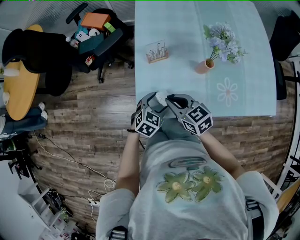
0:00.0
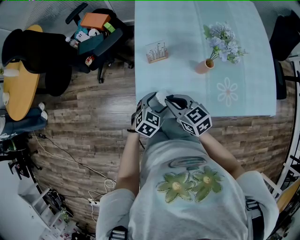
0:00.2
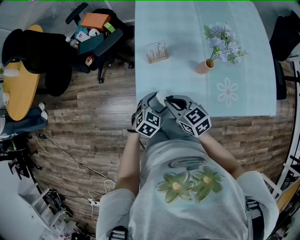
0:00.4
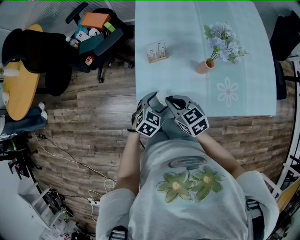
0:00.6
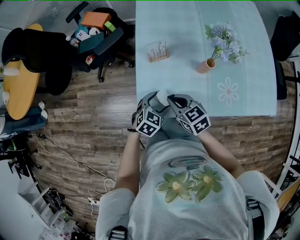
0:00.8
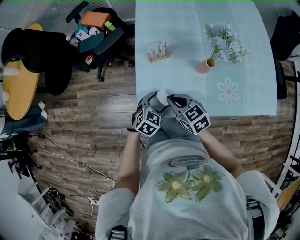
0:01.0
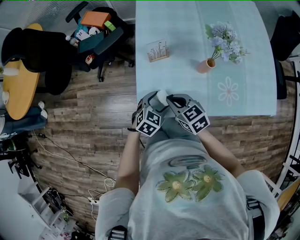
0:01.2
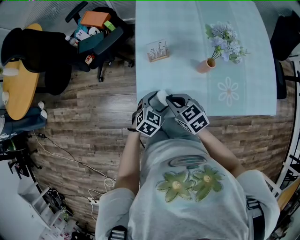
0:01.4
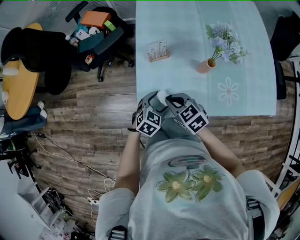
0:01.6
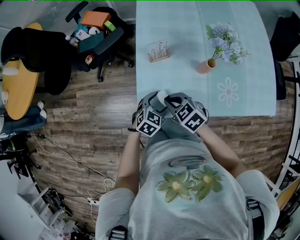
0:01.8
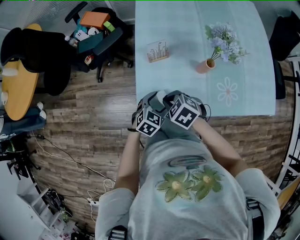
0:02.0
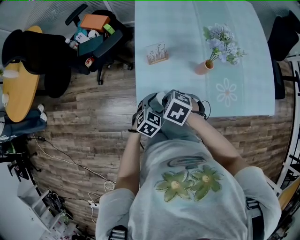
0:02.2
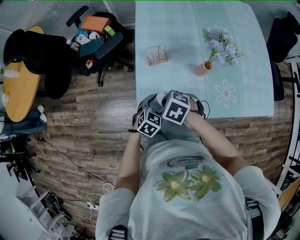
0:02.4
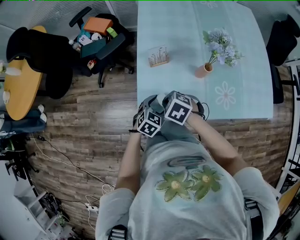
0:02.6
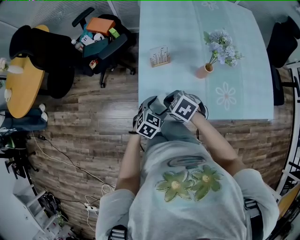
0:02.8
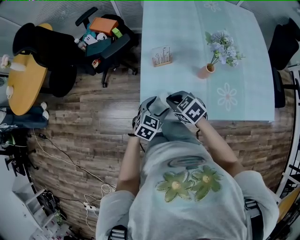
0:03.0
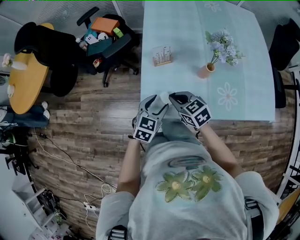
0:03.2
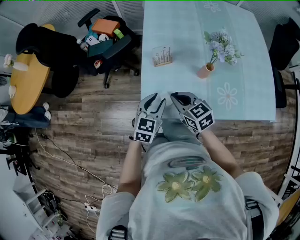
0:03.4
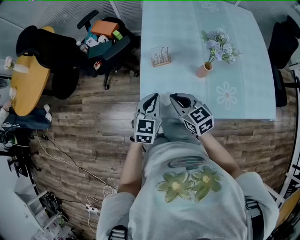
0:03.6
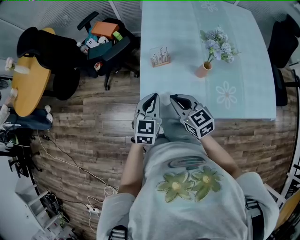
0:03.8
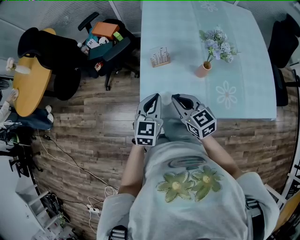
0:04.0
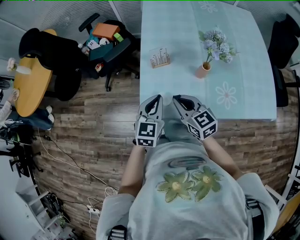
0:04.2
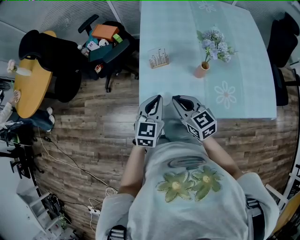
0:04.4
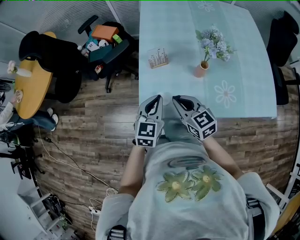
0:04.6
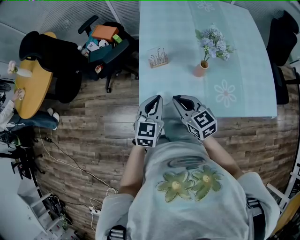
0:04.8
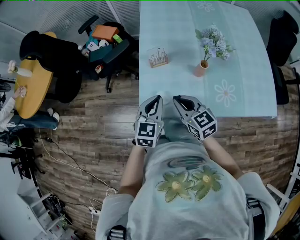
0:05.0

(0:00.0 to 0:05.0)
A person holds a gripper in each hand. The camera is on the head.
0:00.0 - 0:01.6: The grippers stay close to where they were, moving slightly.
0:01.6 - 0:03.4: The left gripper travels upward by some 10 cm, rotates approximately 20 degrees, and closes its fingers, while the right gripper shifts by about 5 cm.
0:03.4 - 0:05.0: The right gripper moves approximately 5 cm. The left gripper ends up about 5 cm from where it was, and closes.

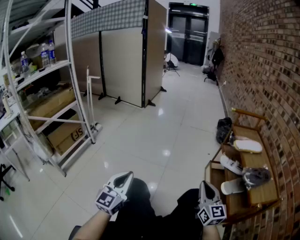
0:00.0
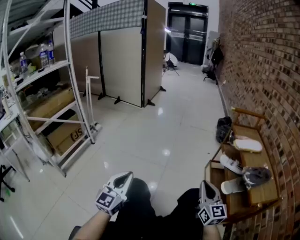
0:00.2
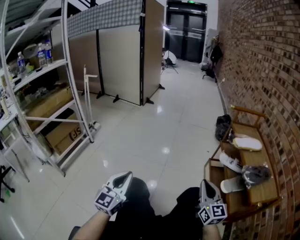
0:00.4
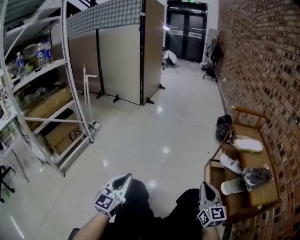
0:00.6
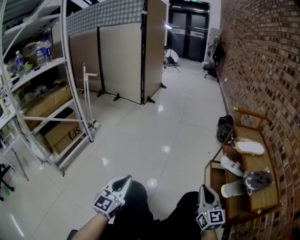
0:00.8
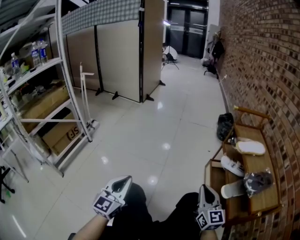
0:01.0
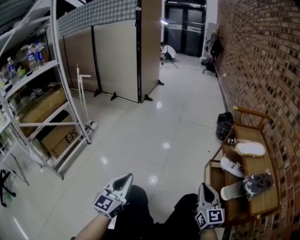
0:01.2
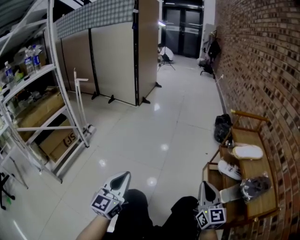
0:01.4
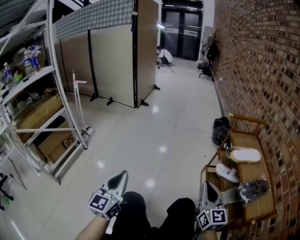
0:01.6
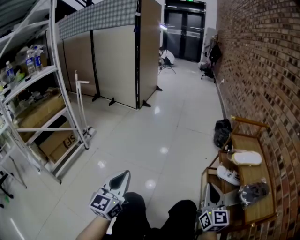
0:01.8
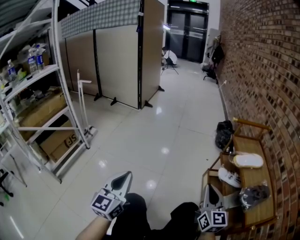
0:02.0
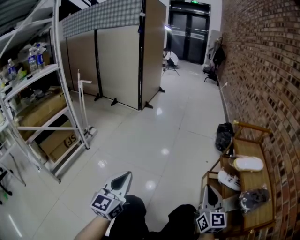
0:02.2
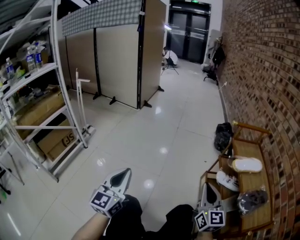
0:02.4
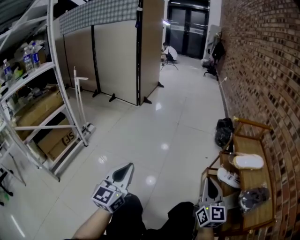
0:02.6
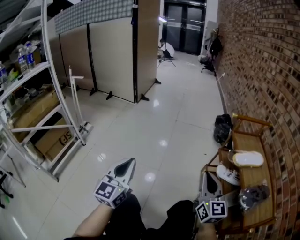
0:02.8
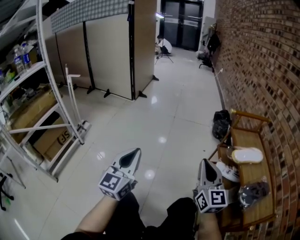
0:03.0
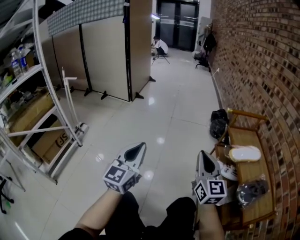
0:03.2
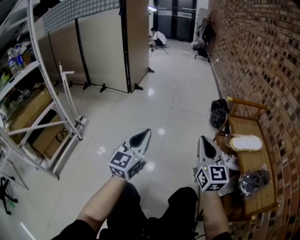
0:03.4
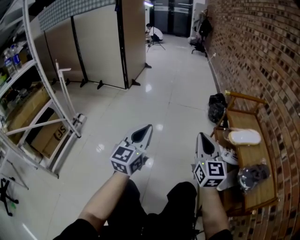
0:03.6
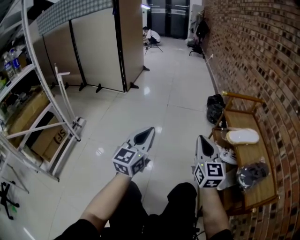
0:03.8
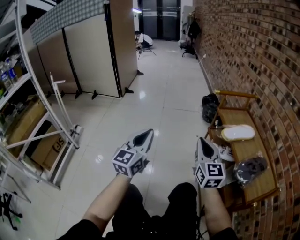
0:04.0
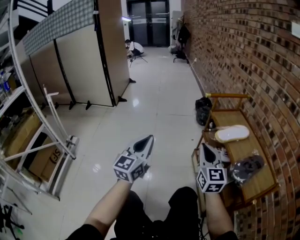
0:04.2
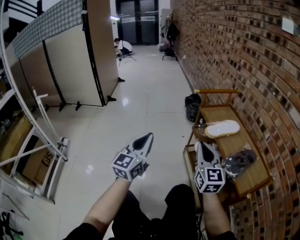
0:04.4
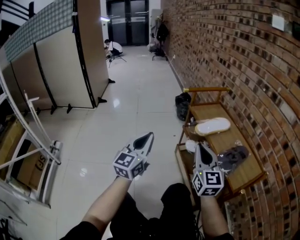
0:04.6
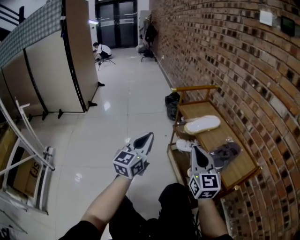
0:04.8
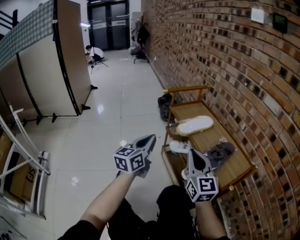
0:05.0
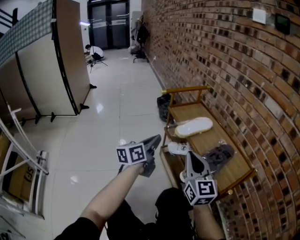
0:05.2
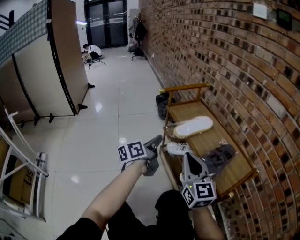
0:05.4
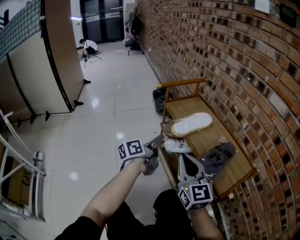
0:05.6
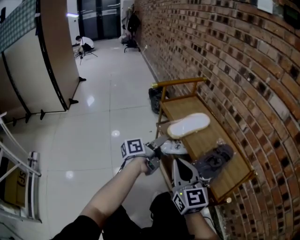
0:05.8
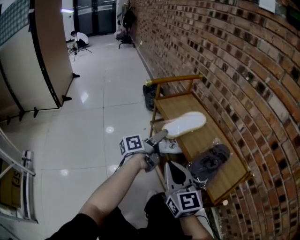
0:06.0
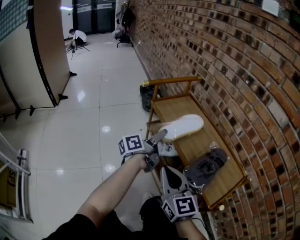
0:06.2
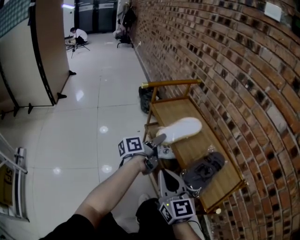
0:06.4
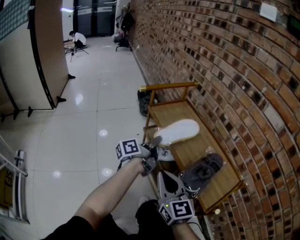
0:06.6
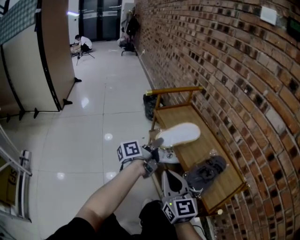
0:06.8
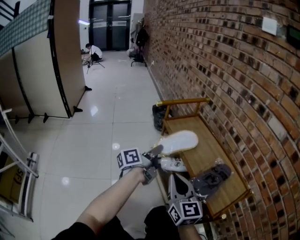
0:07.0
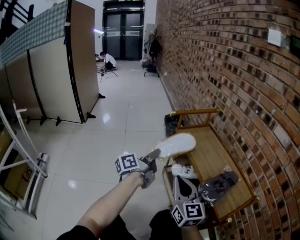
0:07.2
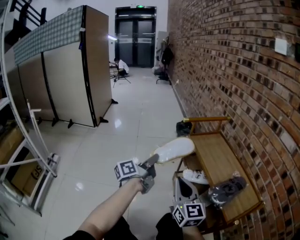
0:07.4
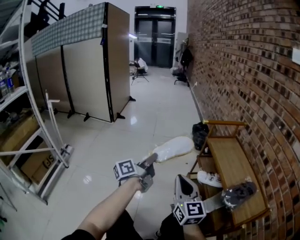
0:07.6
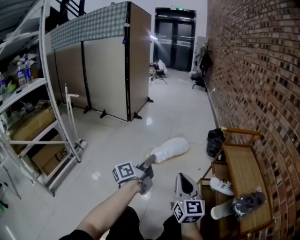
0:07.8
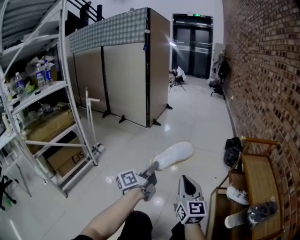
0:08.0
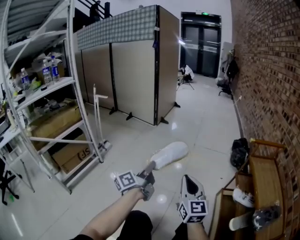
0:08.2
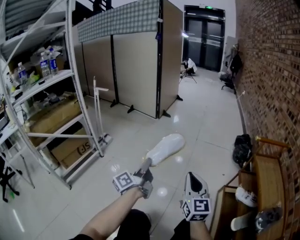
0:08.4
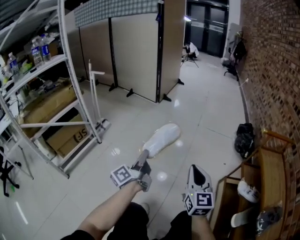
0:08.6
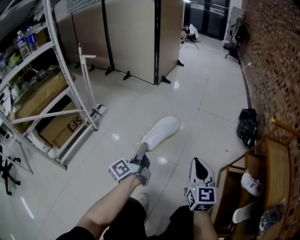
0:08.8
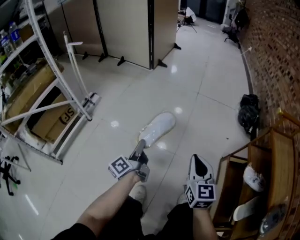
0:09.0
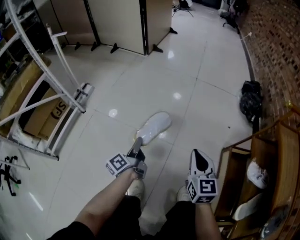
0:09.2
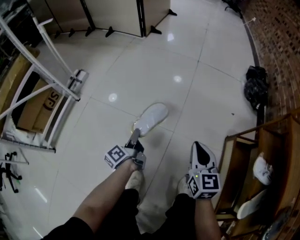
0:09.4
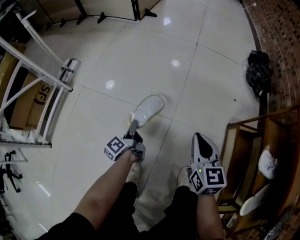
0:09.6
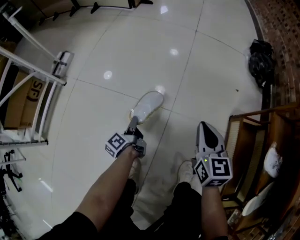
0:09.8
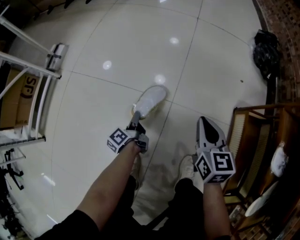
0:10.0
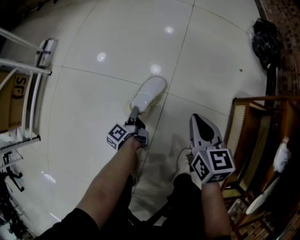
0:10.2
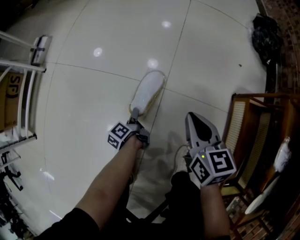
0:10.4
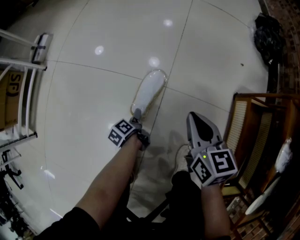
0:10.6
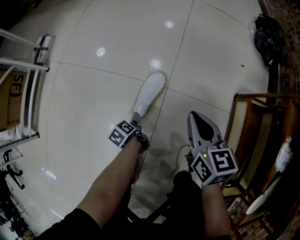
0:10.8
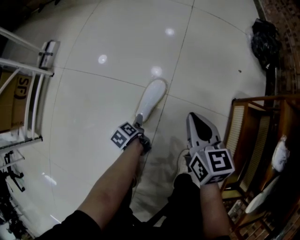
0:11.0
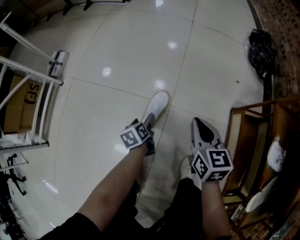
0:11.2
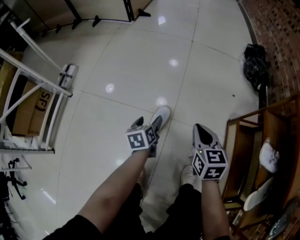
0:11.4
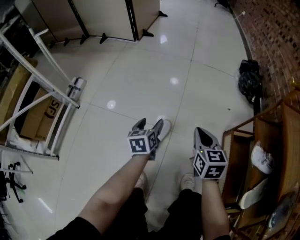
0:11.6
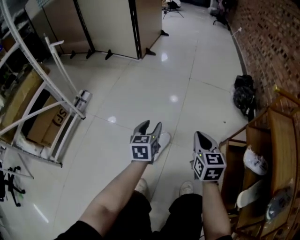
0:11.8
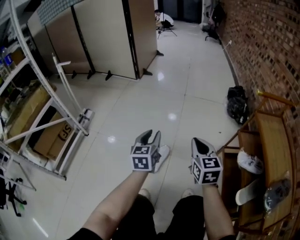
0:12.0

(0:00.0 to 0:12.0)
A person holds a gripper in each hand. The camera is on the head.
0:00.0 - 0:01.6: Both grippers travel together forward and upward, approximately 10 cm.
0:01.6 - 0:03.0: Both grippers move forward, approximately 10 cm.
0:03.0 - 0:04.4: The right gripper heads to the right, covering some 10 cm. Meanwhile the left gripper is displaced to the right and forward by some 15 cm, and rotates approximately 20 degrees.
0:04.4 - 0:06.0: The right gripper ends up about 5 cm from where it was, while the left gripper moves to the right, forward and downward, some 35 cm, rolls counterclockwise, seen from behind, by approximately 70 degrees, and opens up.
0:06.0 - 0:07.6: The right gripper goes approximately 15 cm to the left and backward; the left gripper travels to the left and backward by roughly 30 cm, turns by roughly 30 degrees, and closes.
0:07.6 - 0:09.0: The left gripper travels to the left and downward by approximately 35 cm, and turns by some 40 degrees; the right gripper shifts roughly 25 cm downward, forward and to the left.
0:09.0 - 0:10.4: The left gripper goes approximately 40 cm downward, and tilts its fingers approximately 40 degrees downward, while the right gripper goes roughly 25 cm downward, and changes its angle by some 30 degrees.
0:10.4 - 0:12.0: The left gripper travels upward by approximately 50 cm, twists roughly 80 degrees clockwise, seen from behind, and opens, then closes again; the right gripper heads upward, covering some 25 cm, and turns by about 20 degrees.

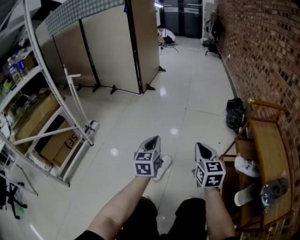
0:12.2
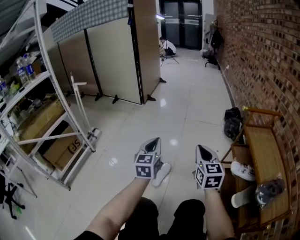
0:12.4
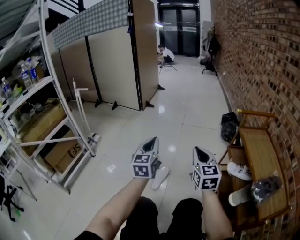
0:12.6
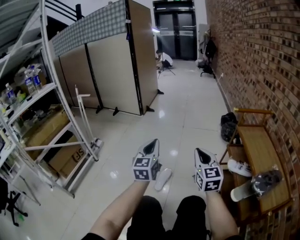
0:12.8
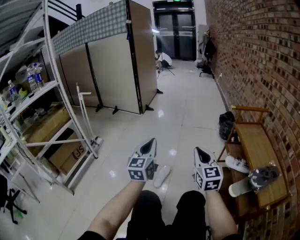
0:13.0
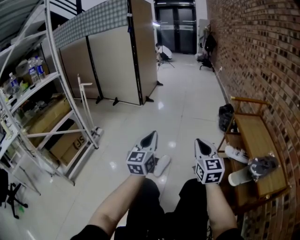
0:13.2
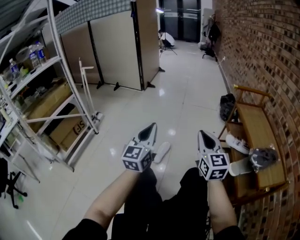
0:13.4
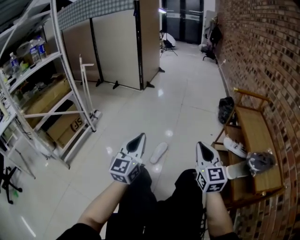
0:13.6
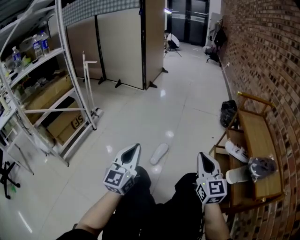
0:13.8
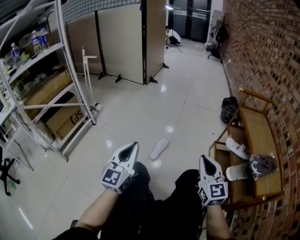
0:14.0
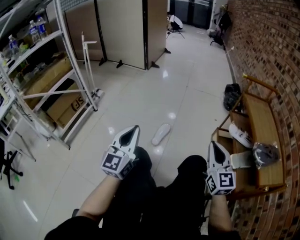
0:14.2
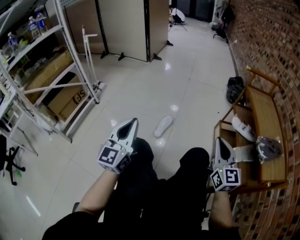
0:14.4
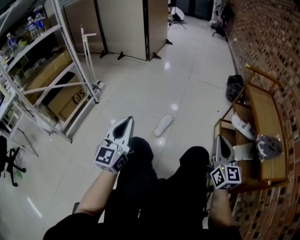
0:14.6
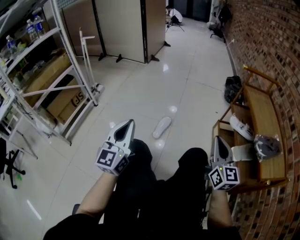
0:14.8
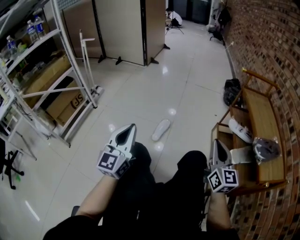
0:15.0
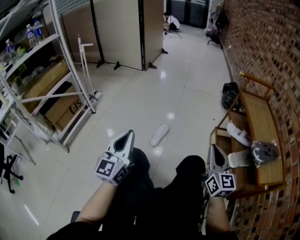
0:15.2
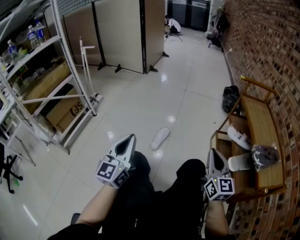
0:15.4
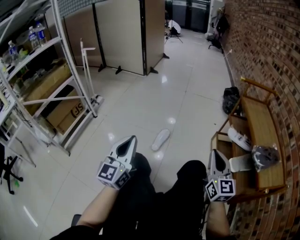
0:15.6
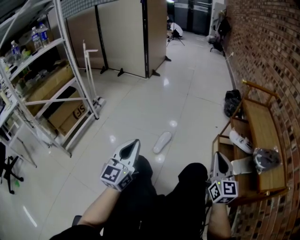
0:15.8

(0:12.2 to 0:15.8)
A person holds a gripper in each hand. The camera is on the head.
0:12.2 - 0:14.0: The two grippers go roughly 25 cm backward. The left gripper turns by some 20 degrees.
0:14.0 - 0:15.8: The right gripper heads to the right, covering about 5 cm.

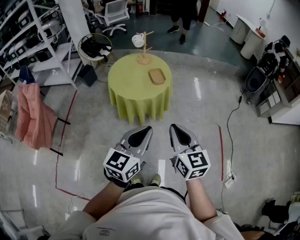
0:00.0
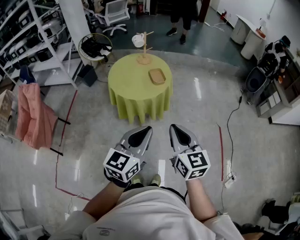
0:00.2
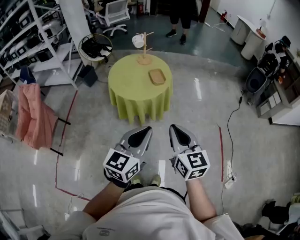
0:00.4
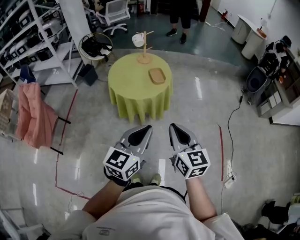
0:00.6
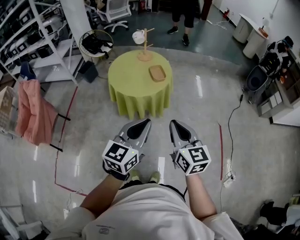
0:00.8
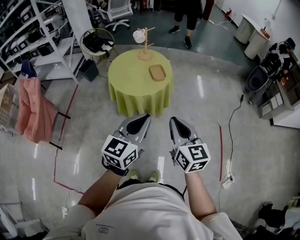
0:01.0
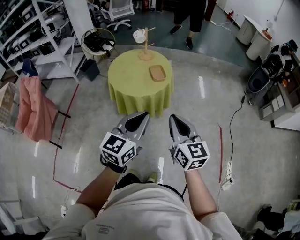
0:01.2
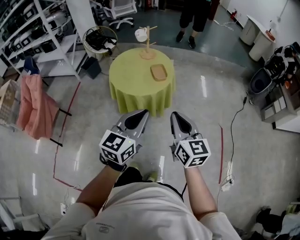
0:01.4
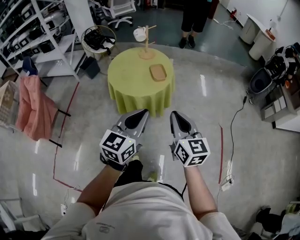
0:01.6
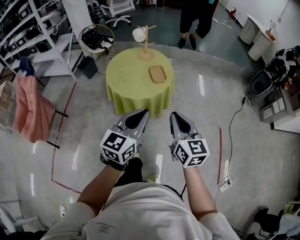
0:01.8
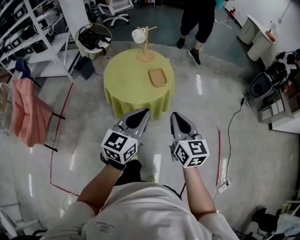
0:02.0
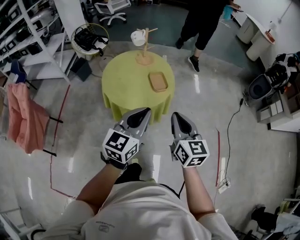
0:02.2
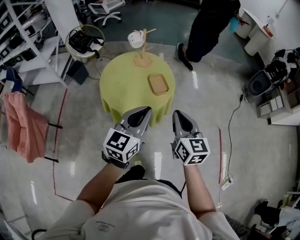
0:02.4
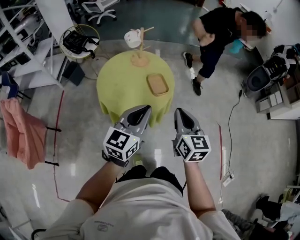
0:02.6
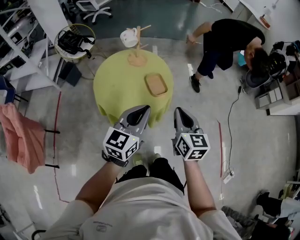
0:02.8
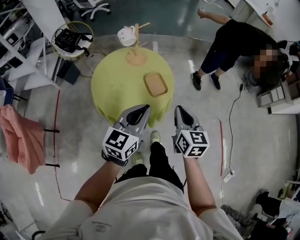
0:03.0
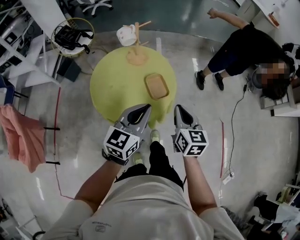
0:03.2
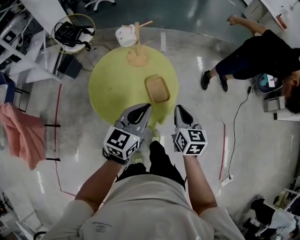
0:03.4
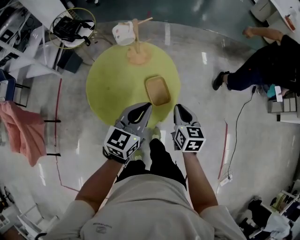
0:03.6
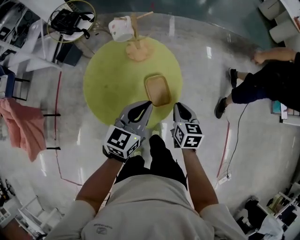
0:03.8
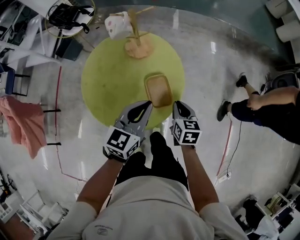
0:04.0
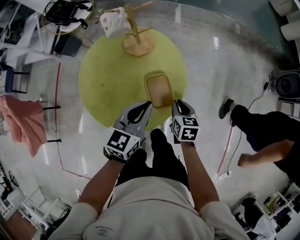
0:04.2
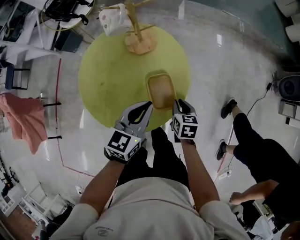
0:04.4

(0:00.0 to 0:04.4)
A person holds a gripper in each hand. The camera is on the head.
0:00.0 - 0:01.4: The grippers both shift forward by about 5 cm.
0:01.4 - 0:03.0: Both grippers move forward, some 30 cm. The right gripper changes its angle by some 20 degrees.
0:03.0 - 0:04.4: The right gripper shifts approximately 35 cm downward and forward, and points its fingers approximately 30 degrees further downward; the left gripper moves forward and downward, about 25 cm.
